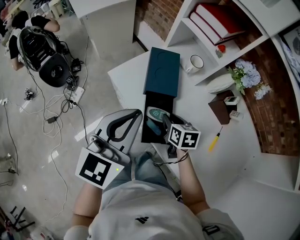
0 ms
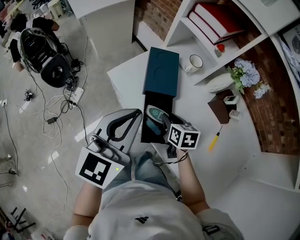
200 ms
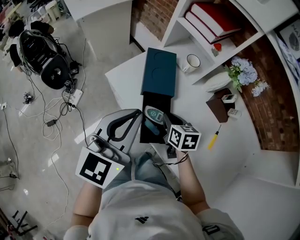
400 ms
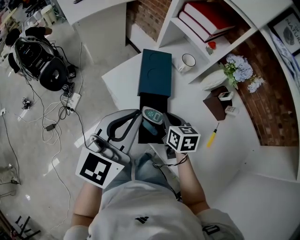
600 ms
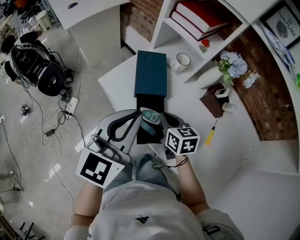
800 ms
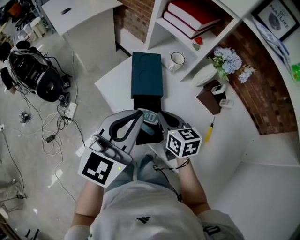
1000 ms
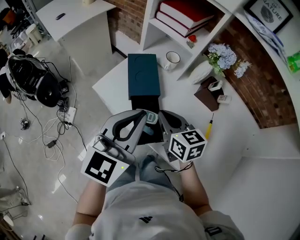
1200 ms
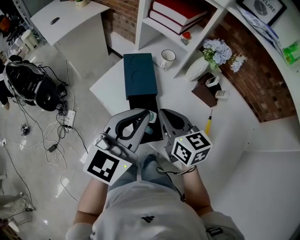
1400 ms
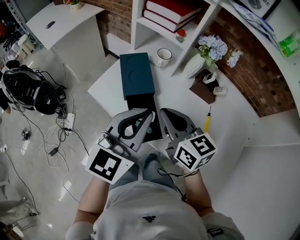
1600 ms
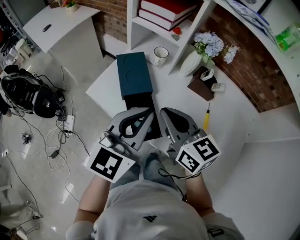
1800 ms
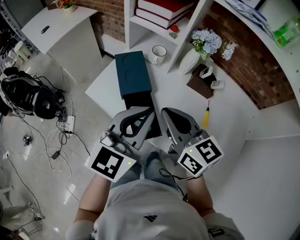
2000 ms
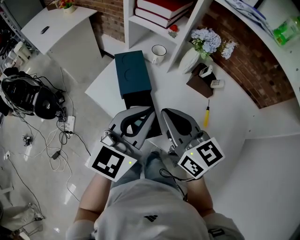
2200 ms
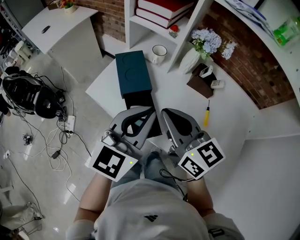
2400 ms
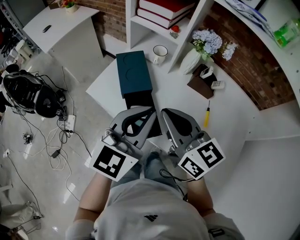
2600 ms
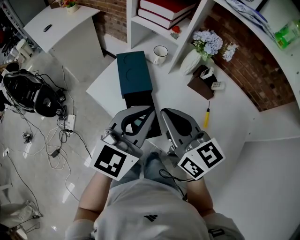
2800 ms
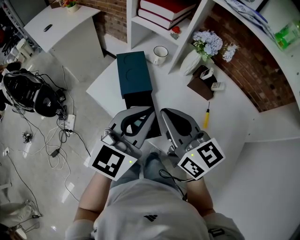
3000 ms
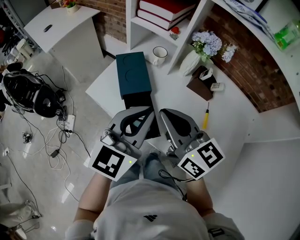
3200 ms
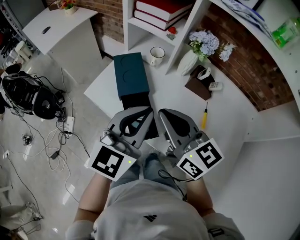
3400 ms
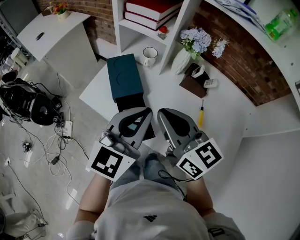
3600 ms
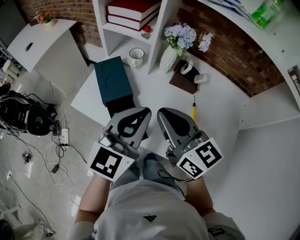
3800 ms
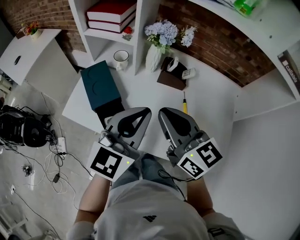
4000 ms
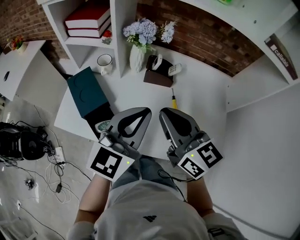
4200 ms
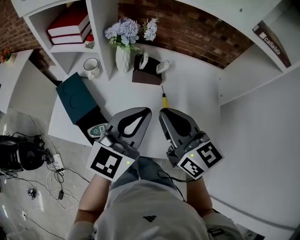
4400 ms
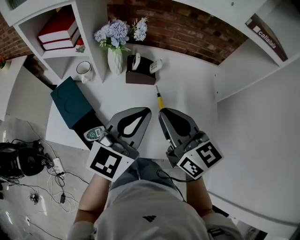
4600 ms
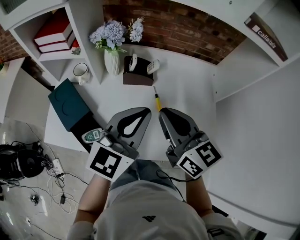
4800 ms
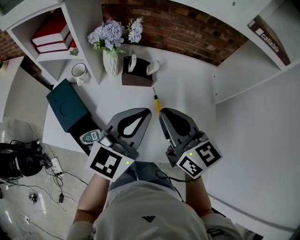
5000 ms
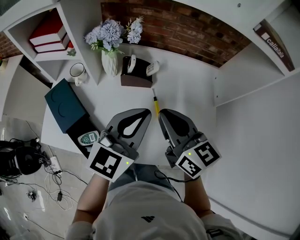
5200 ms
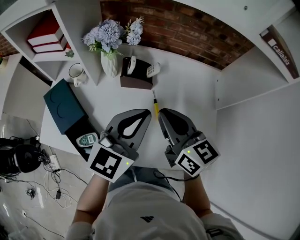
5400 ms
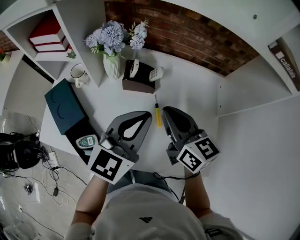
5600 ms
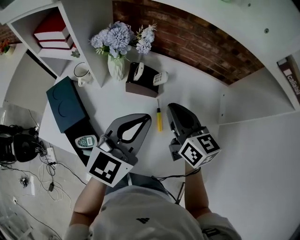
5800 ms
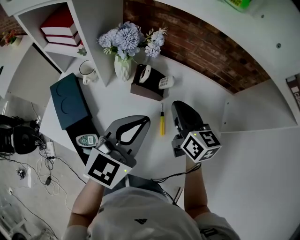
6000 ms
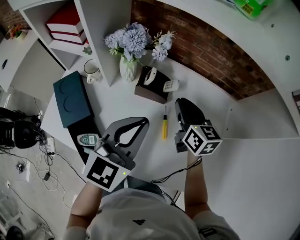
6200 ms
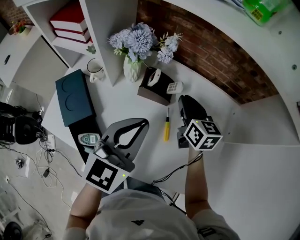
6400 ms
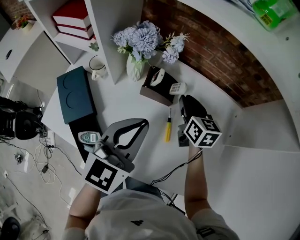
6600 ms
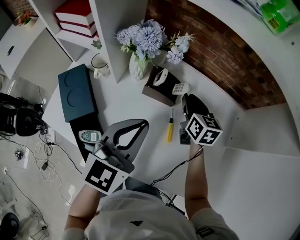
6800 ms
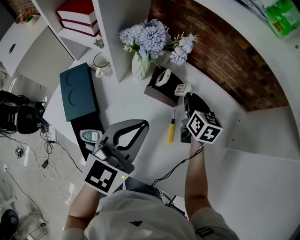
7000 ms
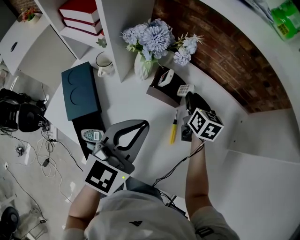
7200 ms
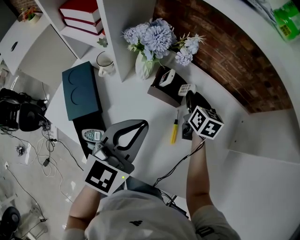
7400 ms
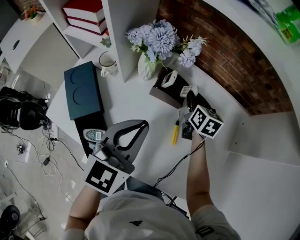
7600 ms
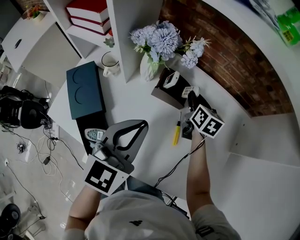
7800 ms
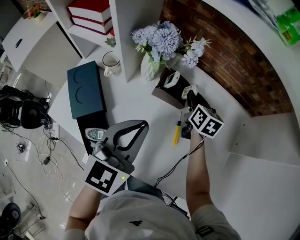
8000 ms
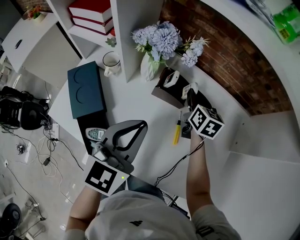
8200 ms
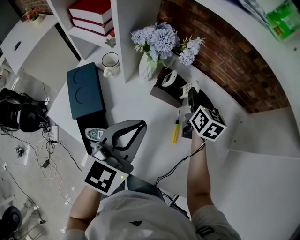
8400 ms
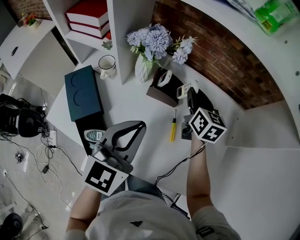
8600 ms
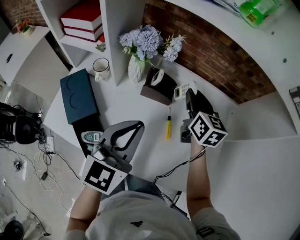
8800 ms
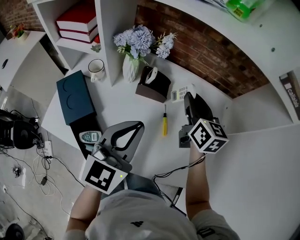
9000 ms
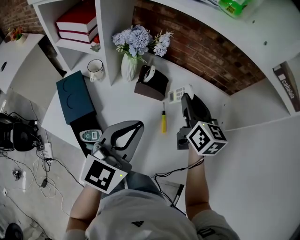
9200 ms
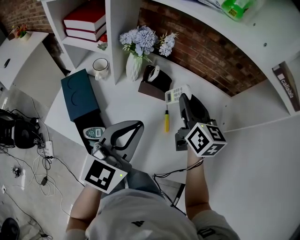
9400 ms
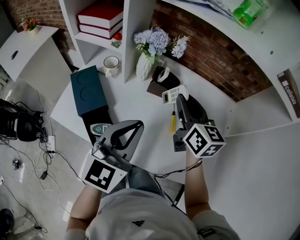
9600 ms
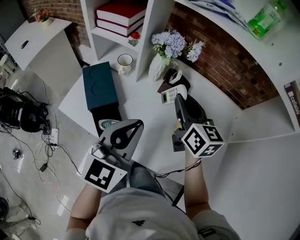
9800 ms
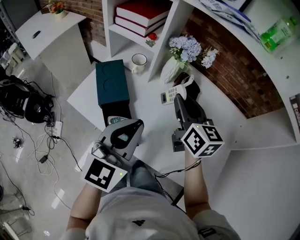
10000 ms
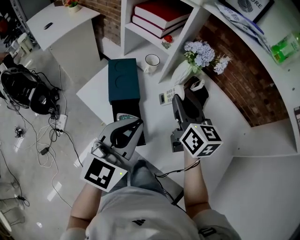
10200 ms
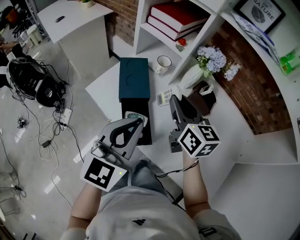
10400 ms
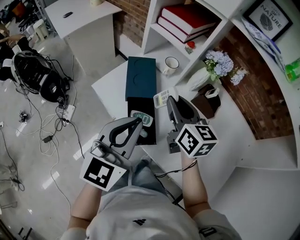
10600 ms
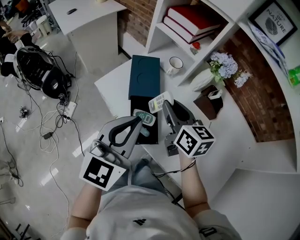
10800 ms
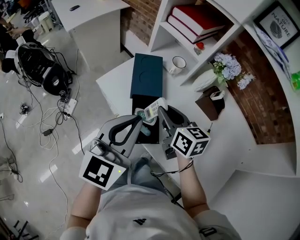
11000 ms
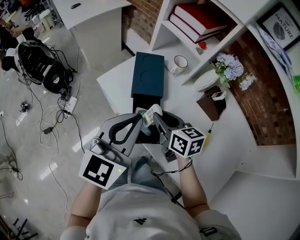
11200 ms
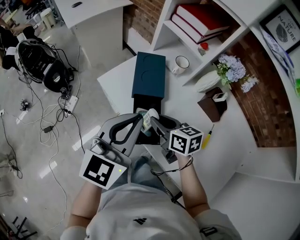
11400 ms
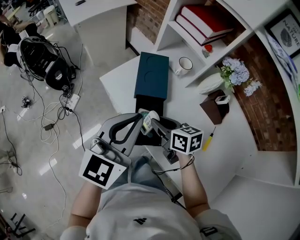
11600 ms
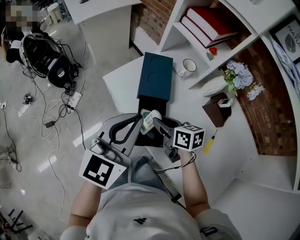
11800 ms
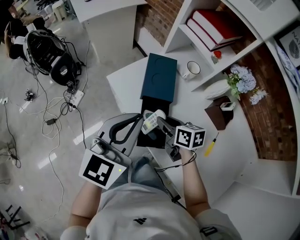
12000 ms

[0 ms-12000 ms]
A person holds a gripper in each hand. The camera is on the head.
0 ms to 1600 ms: The right gripper shifts about 20 cm upward, tips its fingers upward by approximately 30 degrees, and closes its fingers; the left gripper moves to the right, roughly 10 cm, and turns by some 20 degrees.
1600 ms to 3000 ms: The right gripper moves upward, roughly 5 cm.
3000 ms to 4400 ms: The left gripper shifts by about 15 cm, and swivels approximately 30 degrees, while the right gripper shifts by roughly 20 cm, and changes its angle by about 30 degrees.
4400 ms to 6000 ms: The left gripper goes approximately 10 cm forward, while the right gripper moves forward, downward and to the right, roughly 20 cm.
6000 ms to 7600 ms: The left gripper moves to the left, some 5 cm; the right gripper travels forward and downward by about 15 cm, and opens up.
7600 ms to 9000 ms: The right gripper moves upward and backward, approximately 20 cm. The left gripper changes place by some 5 cm.
9000 ms to 10400 ms: The left gripper changes place by approximately 20 cm, and turns by roughly 20 degrees, while the right gripper changes place by some 30 cm, and rotates roughly 30 degrees.
10400 ms to 12000 ms: The left gripper changes place by about 10 cm. The right gripper is displaced downward by approximately 20 cm, and turns by some 40 degrees.

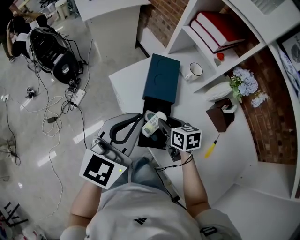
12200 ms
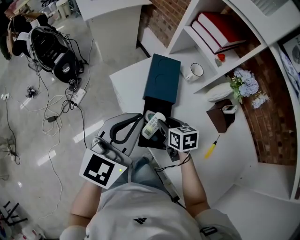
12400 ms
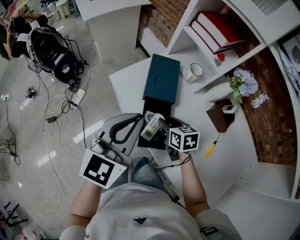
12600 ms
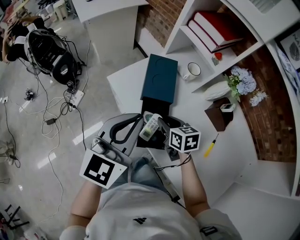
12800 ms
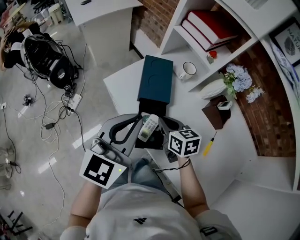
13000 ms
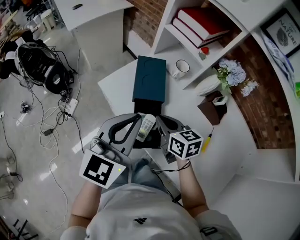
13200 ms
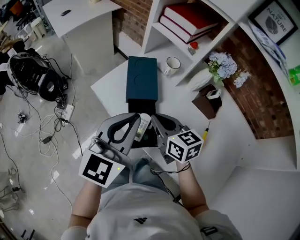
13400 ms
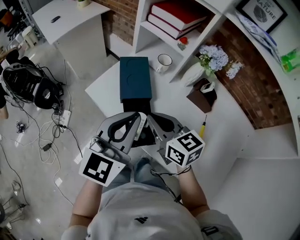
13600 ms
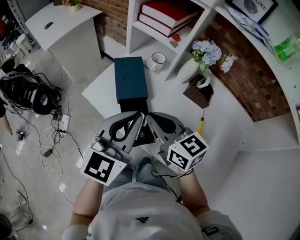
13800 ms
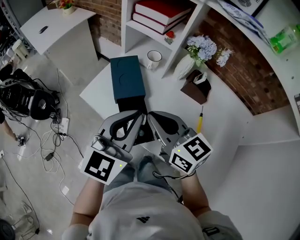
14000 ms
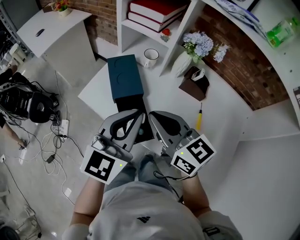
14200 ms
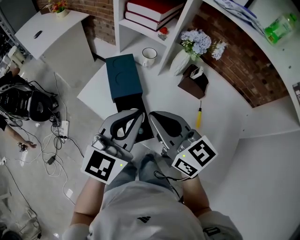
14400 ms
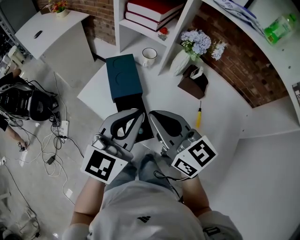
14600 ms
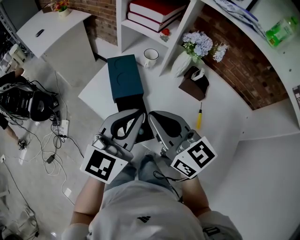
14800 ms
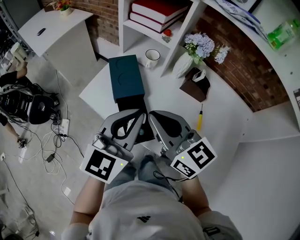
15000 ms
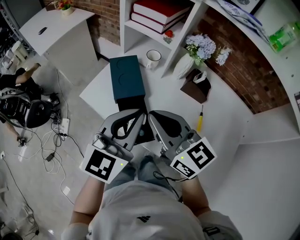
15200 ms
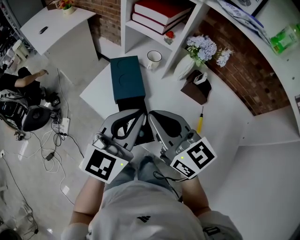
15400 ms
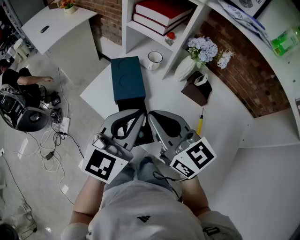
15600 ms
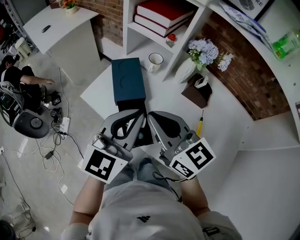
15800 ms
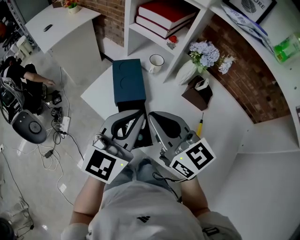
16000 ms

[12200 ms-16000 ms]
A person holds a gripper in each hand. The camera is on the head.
12200 ms to 13400 ms: The right gripper heads upward, covering approximately 10 cm, swivels roughly 20 degrees, and closes its fingers.
13400 ms to 14800 ms: The right gripper goes roughly 15 cm upward and backward, and changes its angle by about 20 degrees. The left gripper ends up about 5 cm from where it was.
14800 ms to 16000 ms: The grippers stay close to where they were, moving slightly.

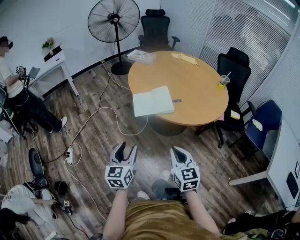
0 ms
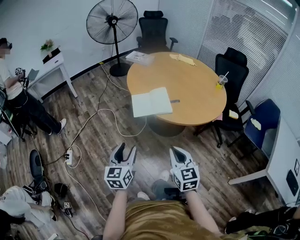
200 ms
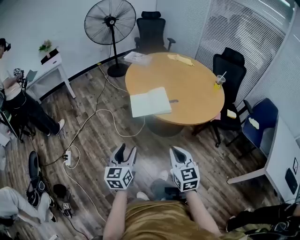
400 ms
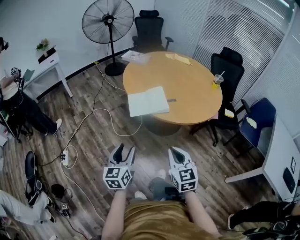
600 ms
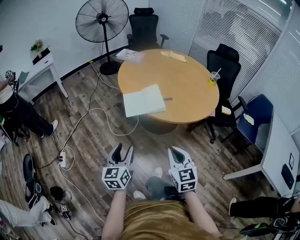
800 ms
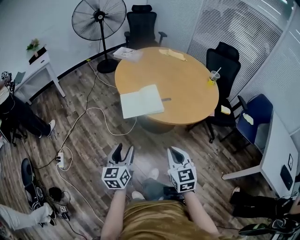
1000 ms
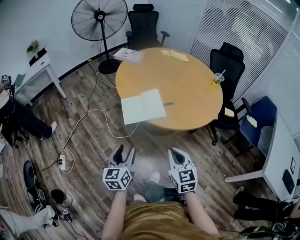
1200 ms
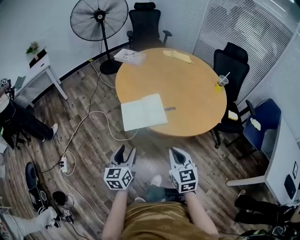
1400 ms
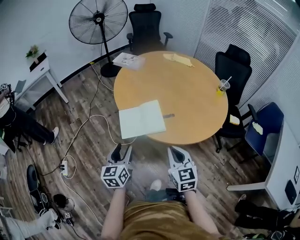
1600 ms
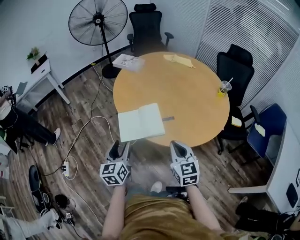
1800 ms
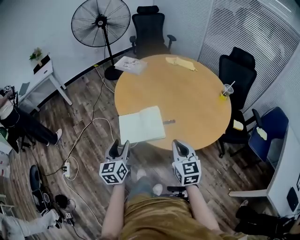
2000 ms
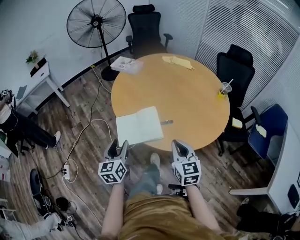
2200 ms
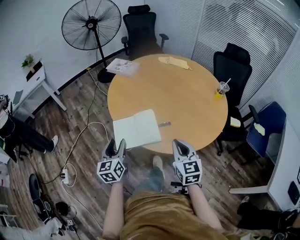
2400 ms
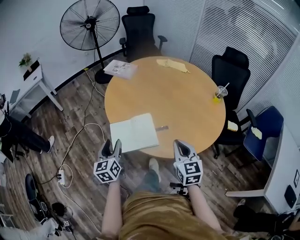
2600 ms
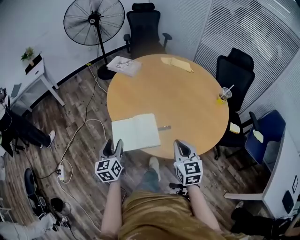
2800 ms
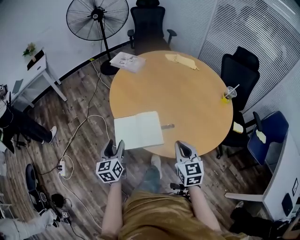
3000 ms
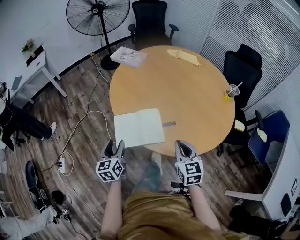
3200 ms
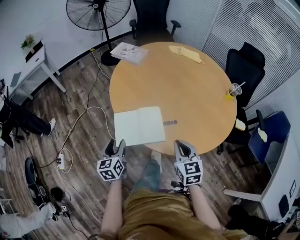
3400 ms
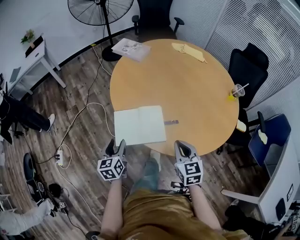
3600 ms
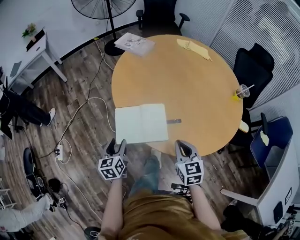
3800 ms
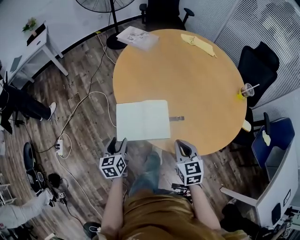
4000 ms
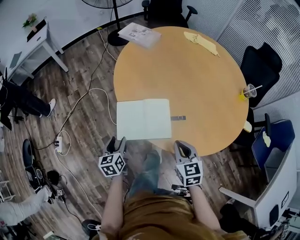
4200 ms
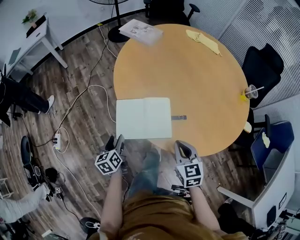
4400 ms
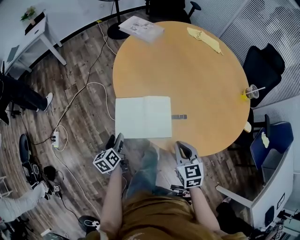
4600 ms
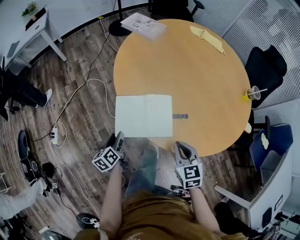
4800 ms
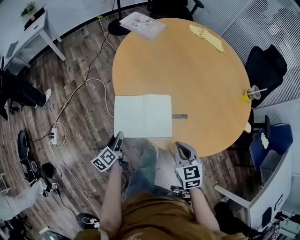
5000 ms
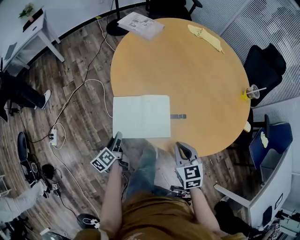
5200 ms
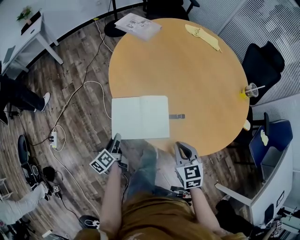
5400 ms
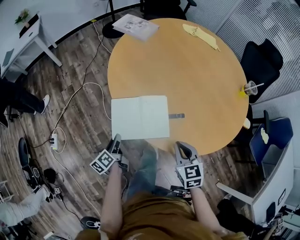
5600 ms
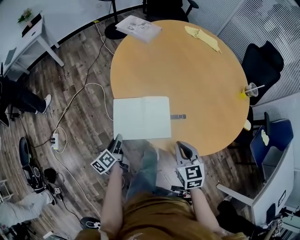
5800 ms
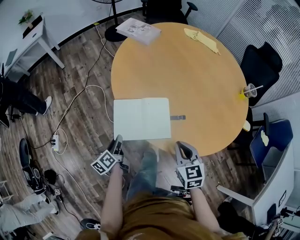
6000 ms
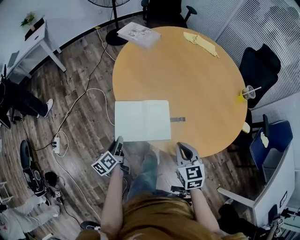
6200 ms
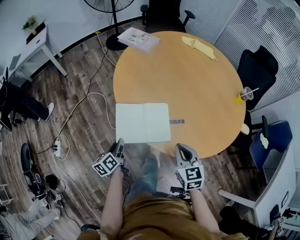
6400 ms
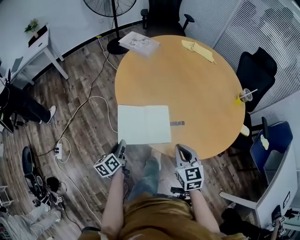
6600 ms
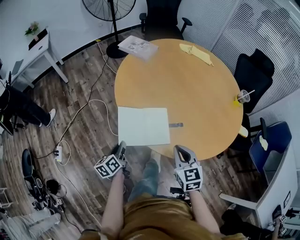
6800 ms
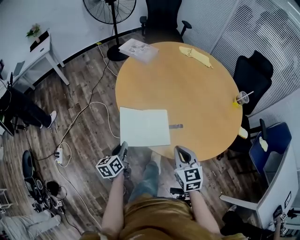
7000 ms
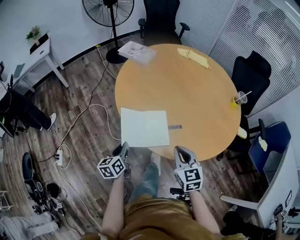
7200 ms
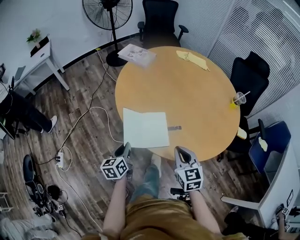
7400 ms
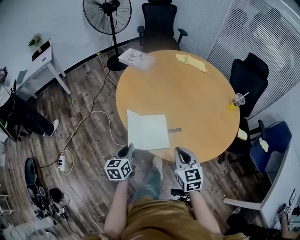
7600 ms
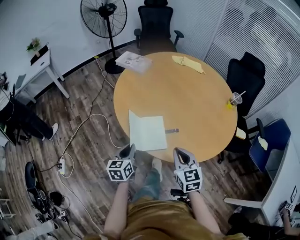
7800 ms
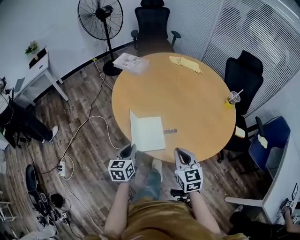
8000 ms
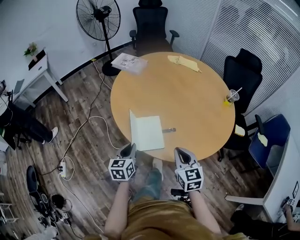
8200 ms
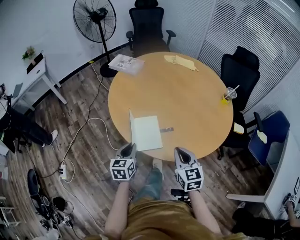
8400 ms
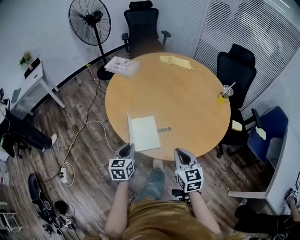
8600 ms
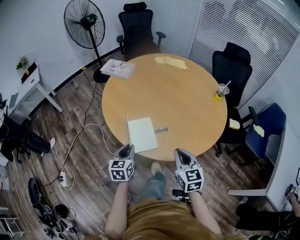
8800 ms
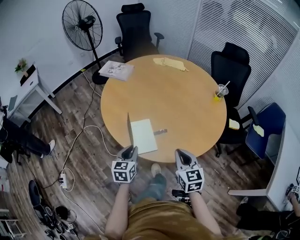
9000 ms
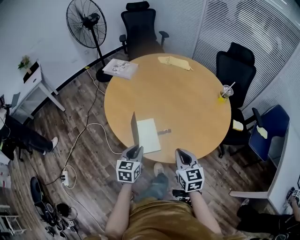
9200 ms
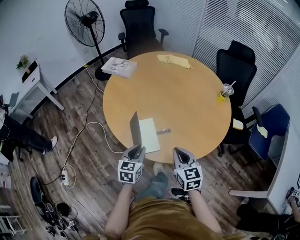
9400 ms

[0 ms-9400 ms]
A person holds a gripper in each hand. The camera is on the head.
0 ms to 1600 ms: The grippers both shift forward by approximately 20 cm.
1600 ms to 3200 ms: The left gripper shifts about 15 cm forward and downward, while the right gripper goes some 15 cm forward and to the right.
3200 ms to 4800 ms: The right gripper goes approximately 10 cm downward. Meanwhile the left gripper moves downward, approximately 15 cm, and changes its angle by approximately 30 degrees.
4800 ms to 6200 ms: The left gripper closes up.
6200 ms to 7800 ms: The right gripper travels upward by approximately 5 cm; the left gripper moves upward and to the right, roughly 10 cm, and rotates roughly 40 degrees.
7800 ms to 9400 ms: The left gripper heads to the right, covering roughly 10 cm, and swivels about 20 degrees.
